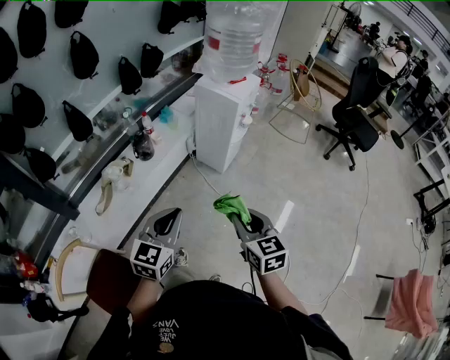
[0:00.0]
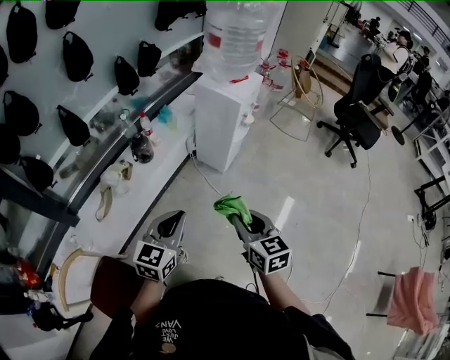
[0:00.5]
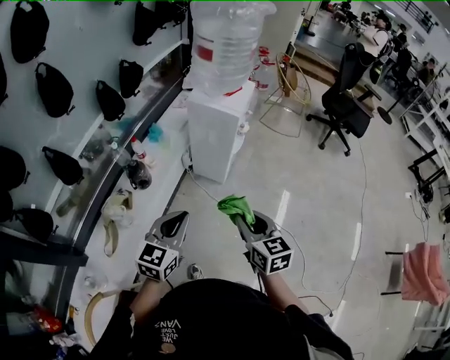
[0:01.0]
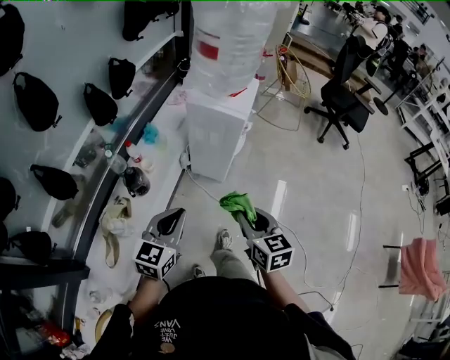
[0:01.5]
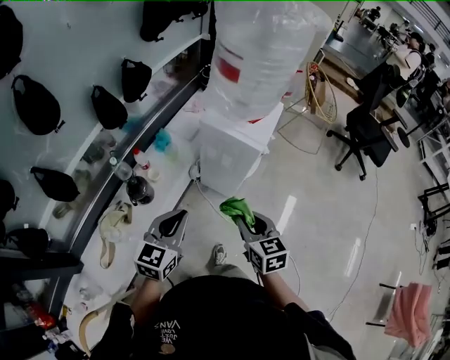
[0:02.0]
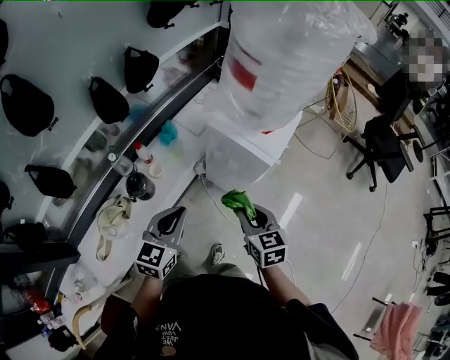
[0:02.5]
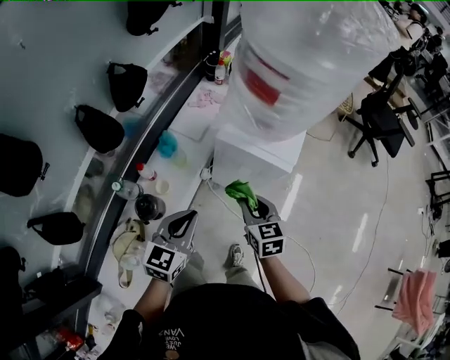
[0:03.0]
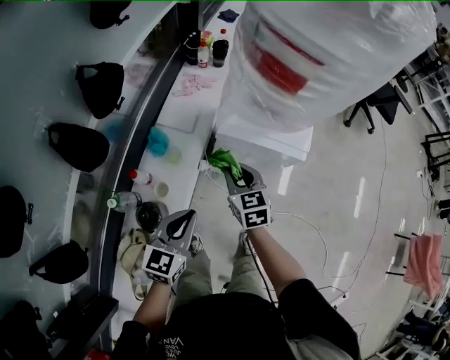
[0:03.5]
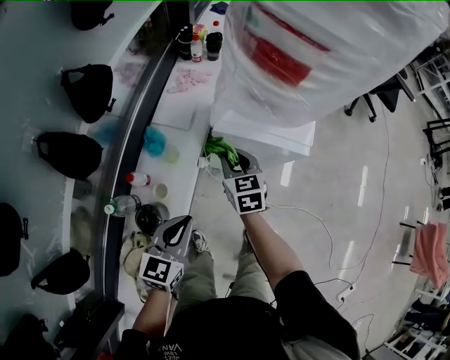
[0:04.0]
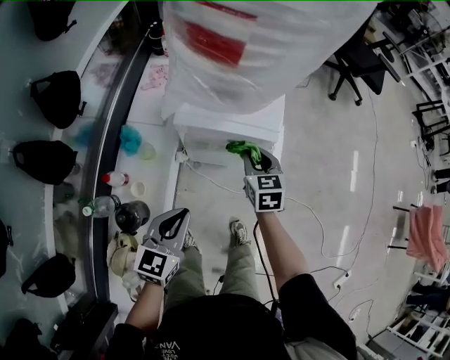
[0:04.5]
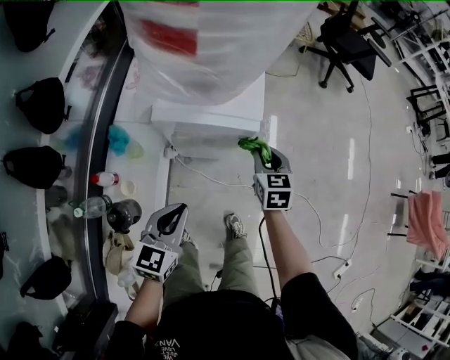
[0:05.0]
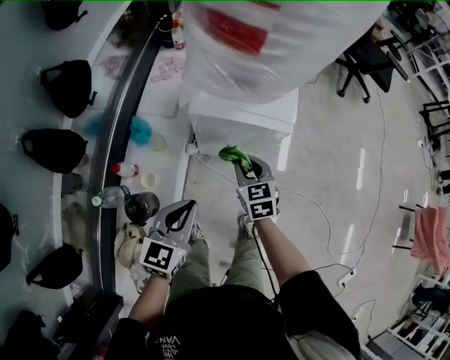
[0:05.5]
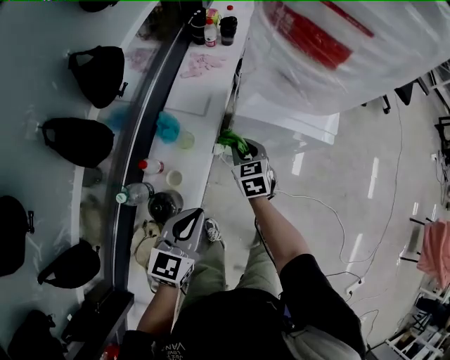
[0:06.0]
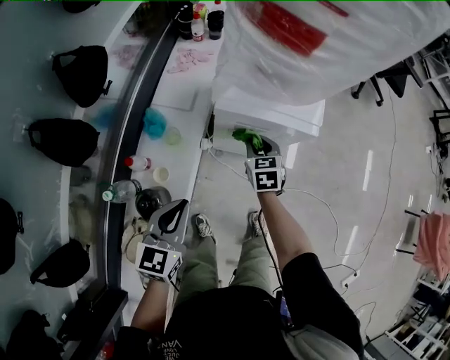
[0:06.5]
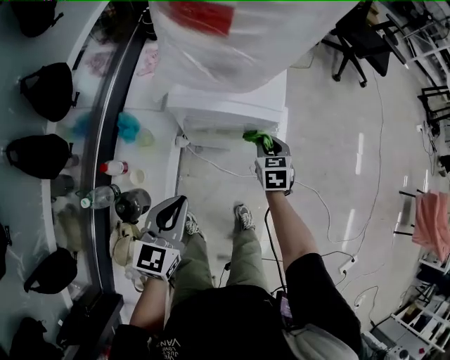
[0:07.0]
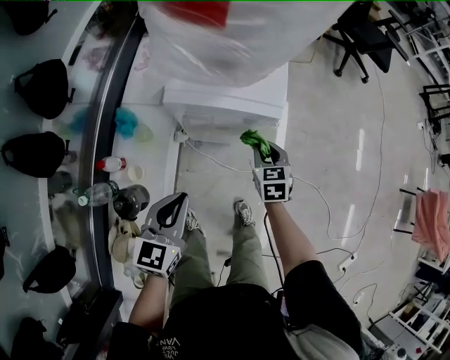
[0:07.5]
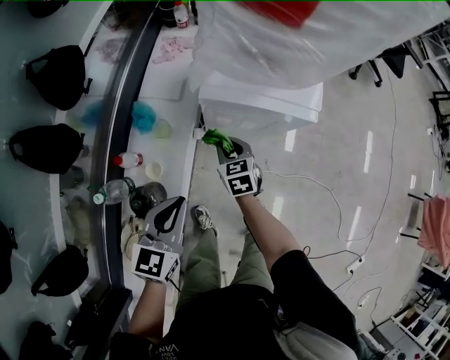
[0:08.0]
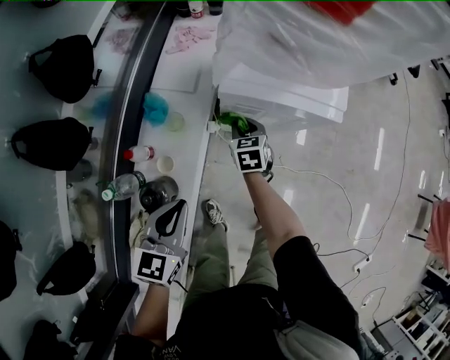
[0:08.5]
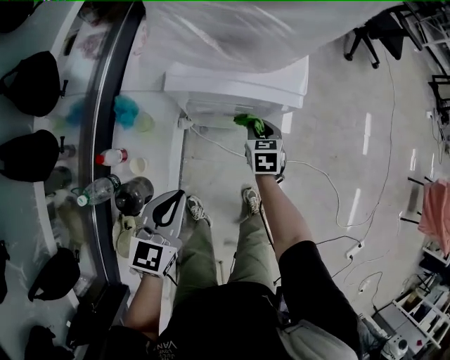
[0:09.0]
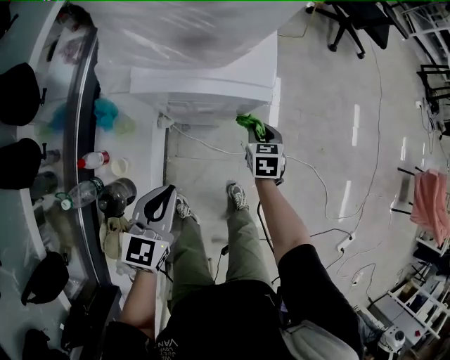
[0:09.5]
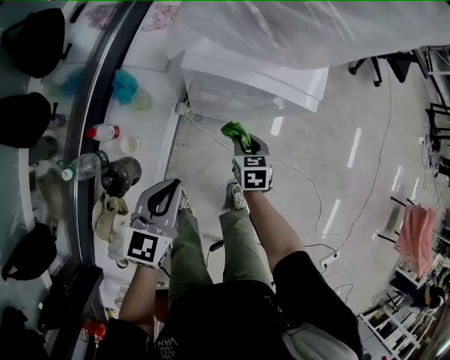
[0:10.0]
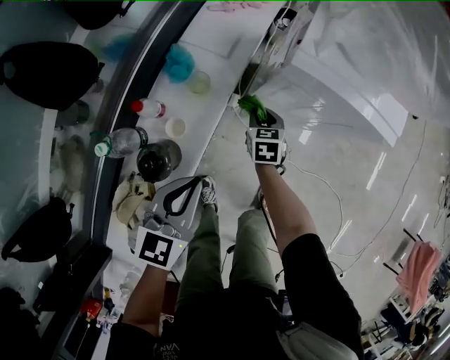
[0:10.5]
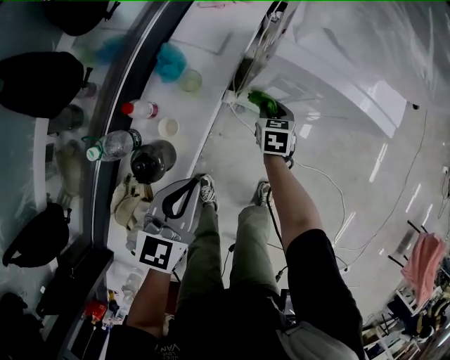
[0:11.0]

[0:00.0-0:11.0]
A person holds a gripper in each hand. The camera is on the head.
0:00.0 to 0:02.0: Both grippers travel together forward, about 35 cm.
0:02.0 to 0:03.5: The right gripper goes roughly 30 cm forward, to the left and downward. The left gripper travels forward, downward and to the left by about 20 cm.
0:03.5 to 0:05.5: The left gripper goes approximately 5 cm to the right, while the right gripper is displaced to the right and downward by approximately 10 cm.
0:05.5 to 0:07.5: The right gripper travels to the right by about 10 cm. Meanwhile the left gripper travels to the left and back again, roughly 10 cm each way.
0:07.5 to 0:09.0: The left gripper moves about 10 cm to the left and comes back. The right gripper heads downward, covering about 5 cm, and goes to the left and returns, some 20 cm each way.
0:09.0 to 0:11.0: The right gripper swings left and right, approximately 30 cm each way, with 2 reversals; the left gripper is displaced to the left by some 5 cm.

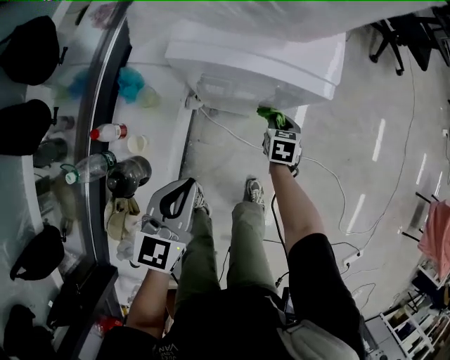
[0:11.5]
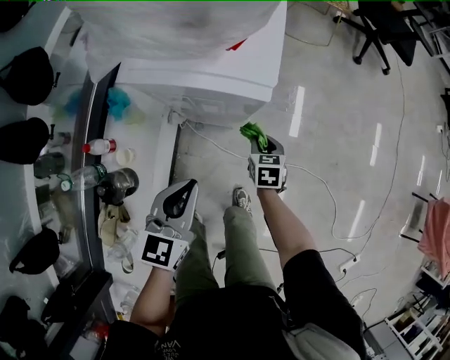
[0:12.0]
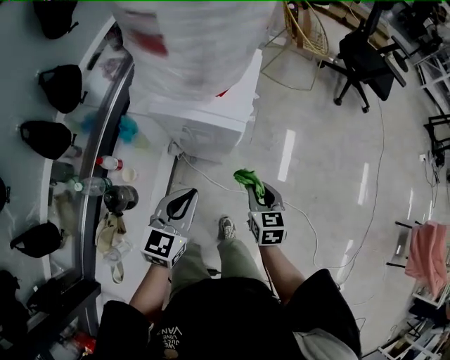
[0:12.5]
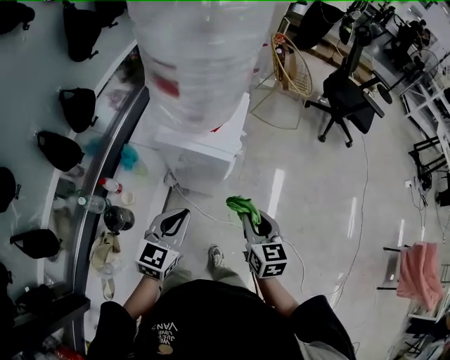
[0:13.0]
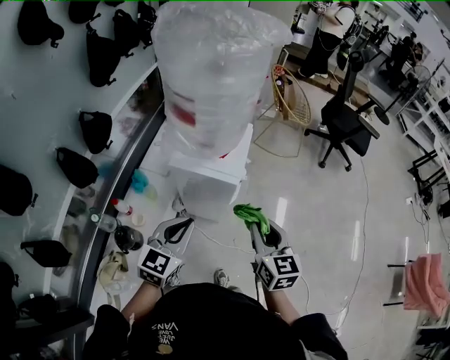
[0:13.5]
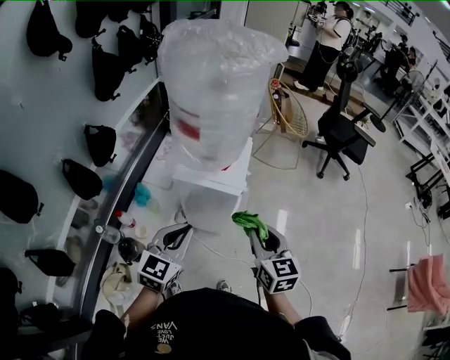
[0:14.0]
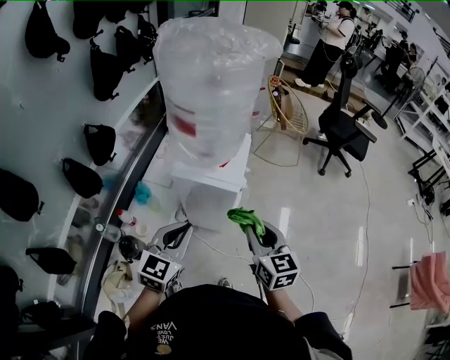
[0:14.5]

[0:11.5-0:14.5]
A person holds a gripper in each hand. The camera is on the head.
0:11.5 to 0:13.0: The left gripper heads upward and to the right, covering some 20 cm, while the right gripper travels upward by some 35 cm, and rotates about 30 degrees.
0:13.0 to 0:14.5: Both grippers travel together upward, some 10 cm.

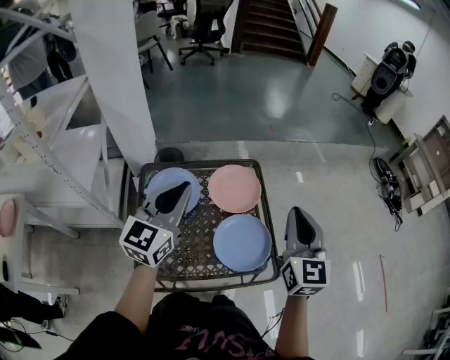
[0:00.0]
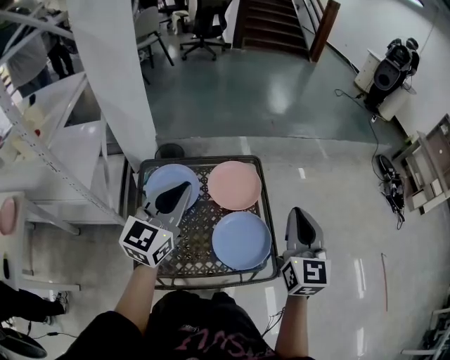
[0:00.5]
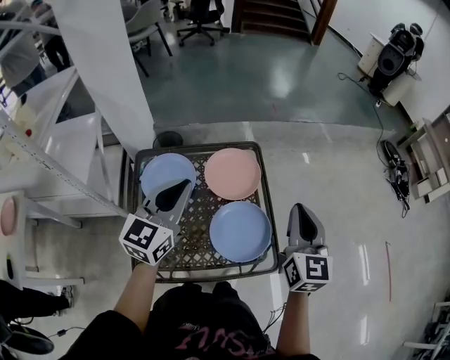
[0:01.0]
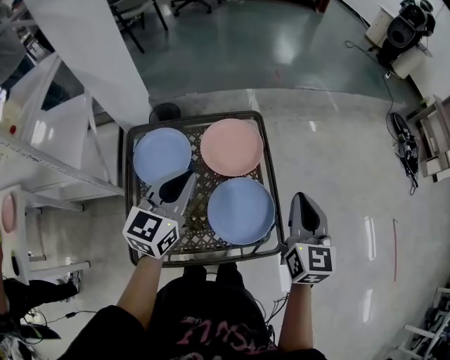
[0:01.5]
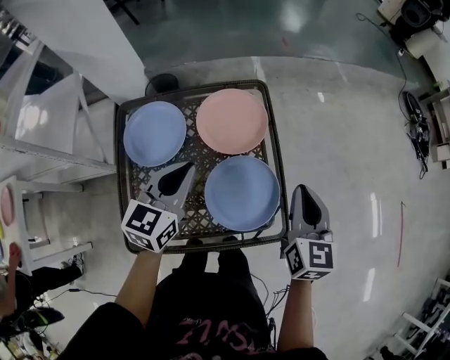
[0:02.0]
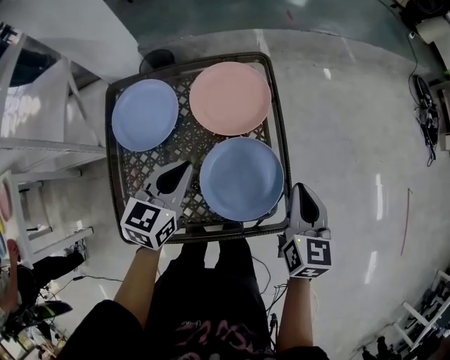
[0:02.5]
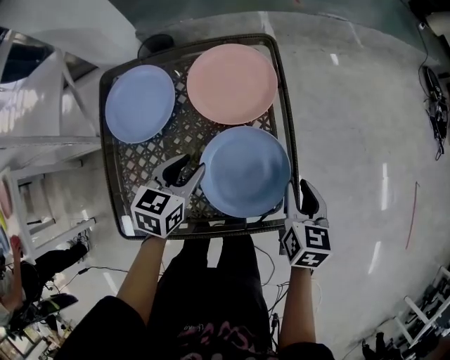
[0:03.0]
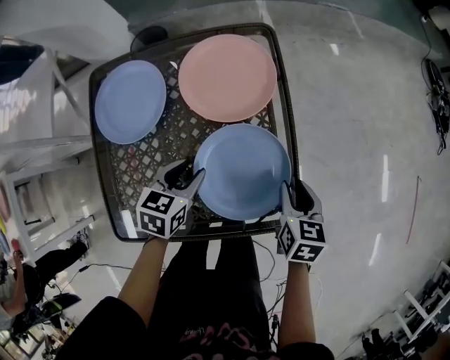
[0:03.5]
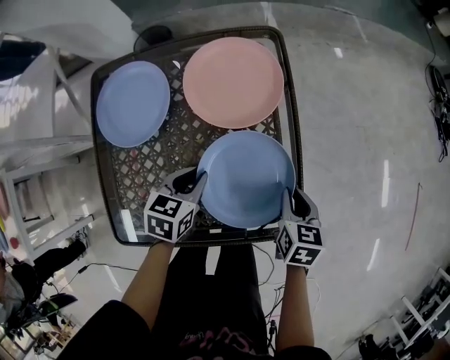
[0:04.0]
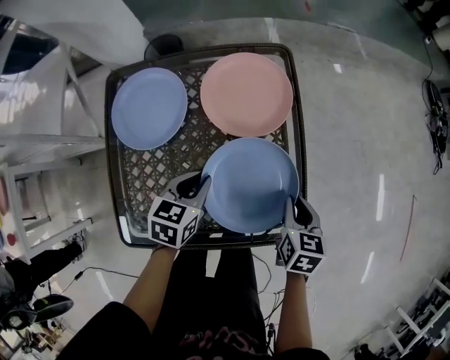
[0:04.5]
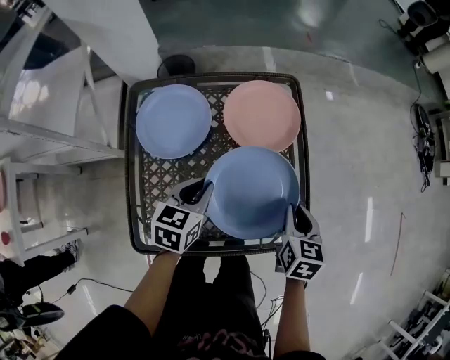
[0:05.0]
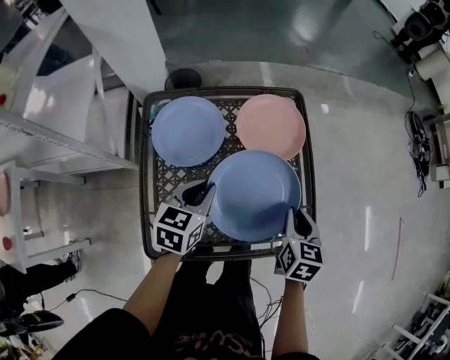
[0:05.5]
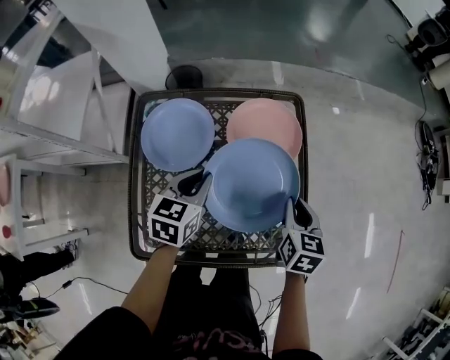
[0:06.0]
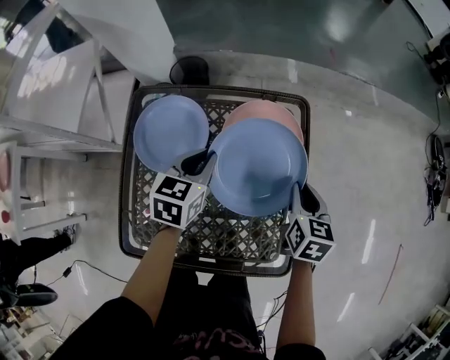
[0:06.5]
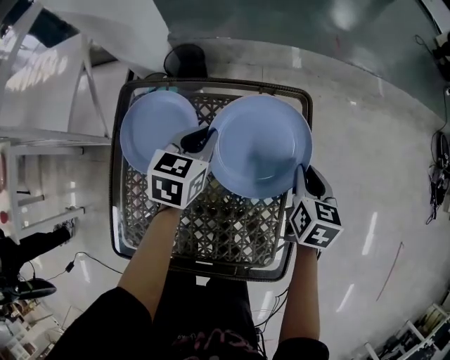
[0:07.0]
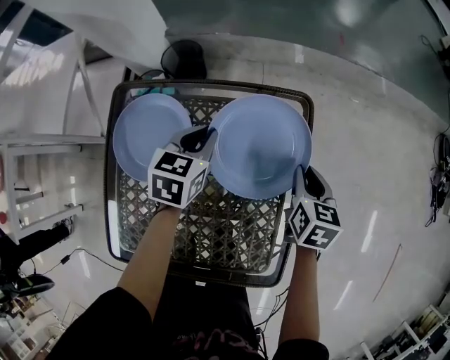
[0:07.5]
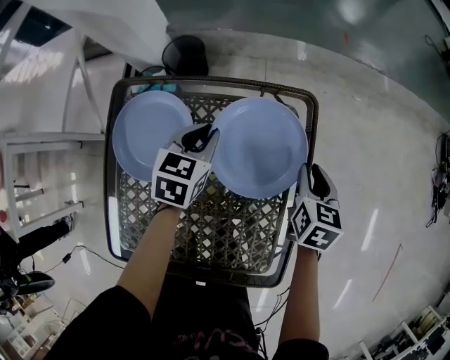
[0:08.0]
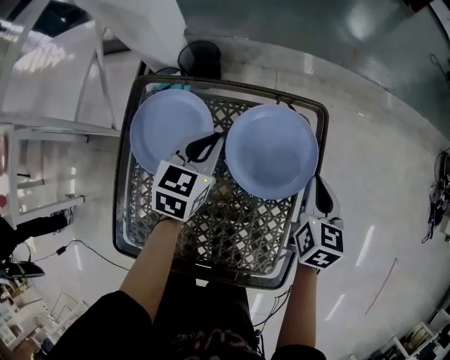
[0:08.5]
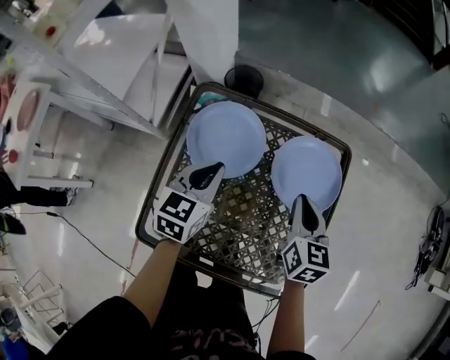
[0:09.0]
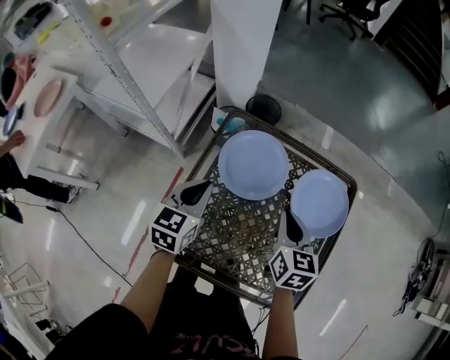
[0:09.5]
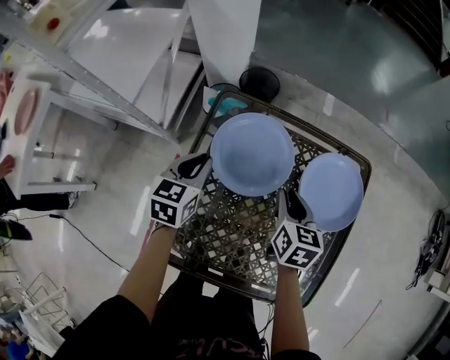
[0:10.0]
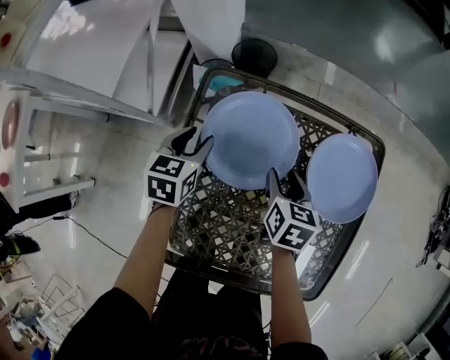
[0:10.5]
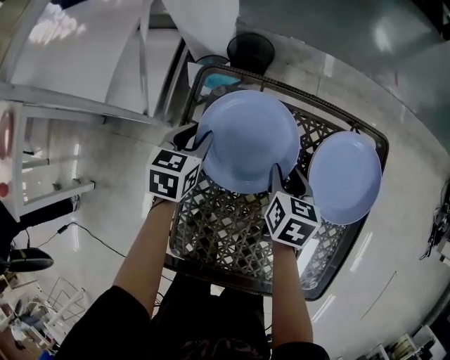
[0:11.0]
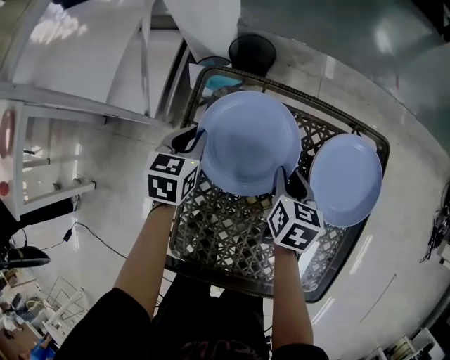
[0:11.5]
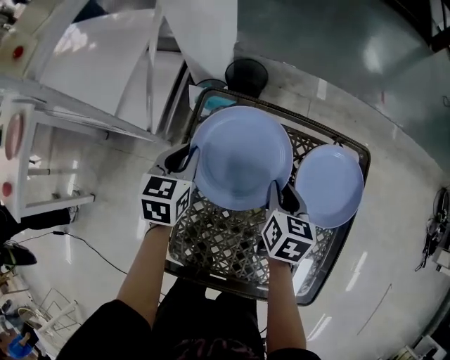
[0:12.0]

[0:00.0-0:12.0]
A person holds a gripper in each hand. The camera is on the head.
0:00.0 to 0:02.0: The grippers both shift downward by some 20 cm. The right gripper swivels roughly 20 degrees, while the left gripper turns by roughly 20 degrees.
0:02.0 to 0:04.0: Both grippers travel together downward, some 25 cm. The right gripper tilts its fingers approximately 30 degrees downward. Meanwhile the left gripper swivels roughly 30 degrees, and opens and closes again.
0:04.0 to 0:06.0: The right gripper shifts approximately 15 cm upward, to the left and forward. The left gripper shifts approximately 15 cm upward and to the left.
0:06.0 to 0:08.0: The right gripper travels forward by approximately 20 cm. The left gripper goes approximately 20 cm forward and downward.
0:08.0 to 0:10.0: The grippers both shift to the left by roughly 30 cm.
0:10.0 to 0:12.0: The right gripper moves approximately 10 cm downward and comes back, and opens, then closes once more; the left gripper reaches approximately 10 cm downward, then returns, and opens, then closes once more.
